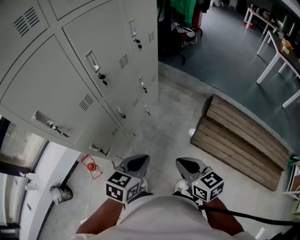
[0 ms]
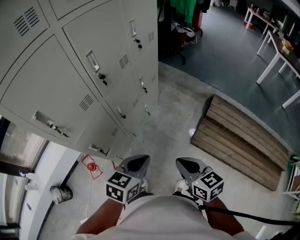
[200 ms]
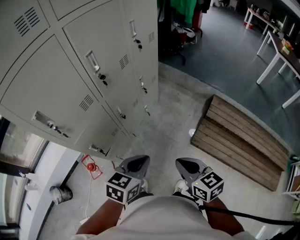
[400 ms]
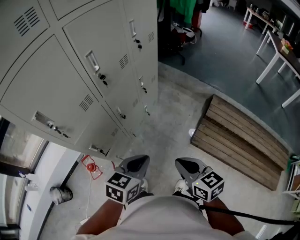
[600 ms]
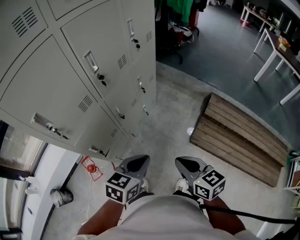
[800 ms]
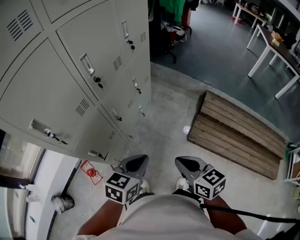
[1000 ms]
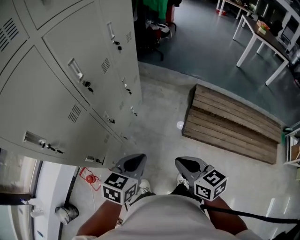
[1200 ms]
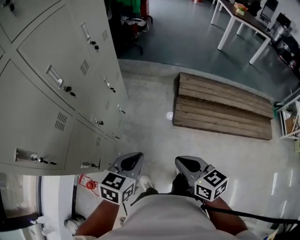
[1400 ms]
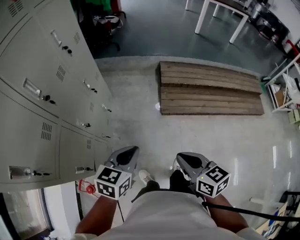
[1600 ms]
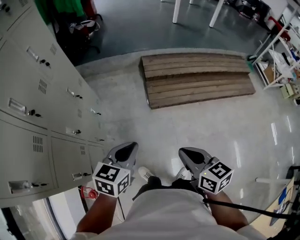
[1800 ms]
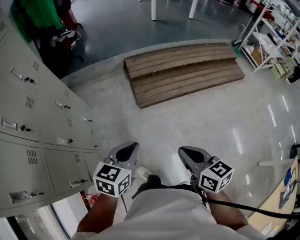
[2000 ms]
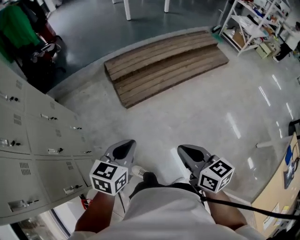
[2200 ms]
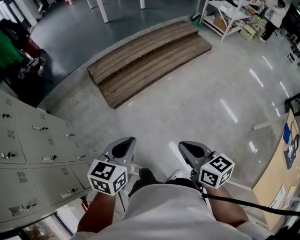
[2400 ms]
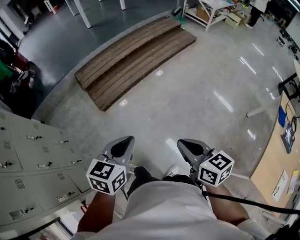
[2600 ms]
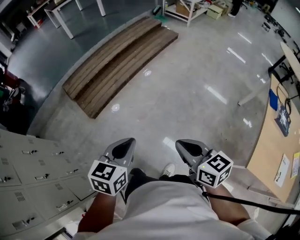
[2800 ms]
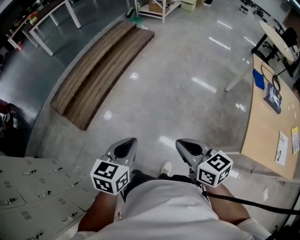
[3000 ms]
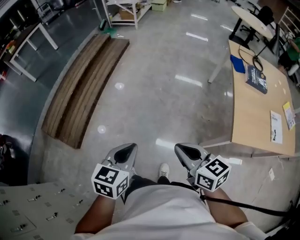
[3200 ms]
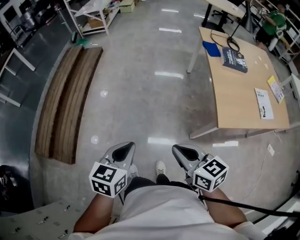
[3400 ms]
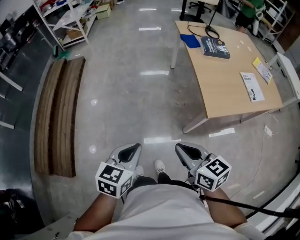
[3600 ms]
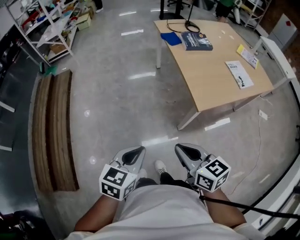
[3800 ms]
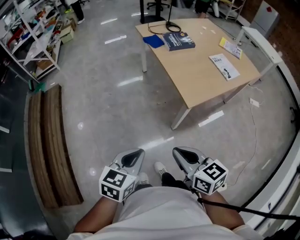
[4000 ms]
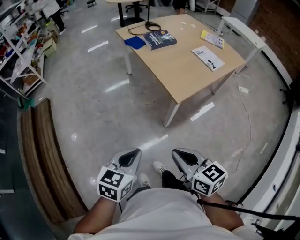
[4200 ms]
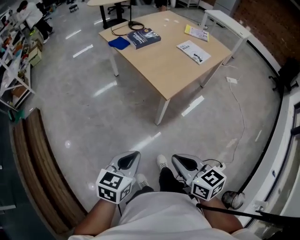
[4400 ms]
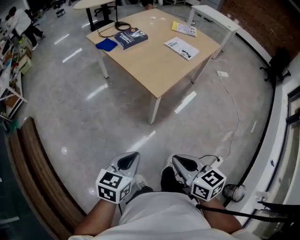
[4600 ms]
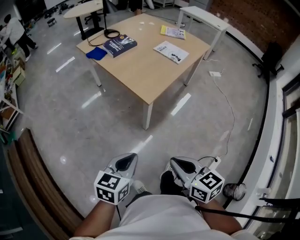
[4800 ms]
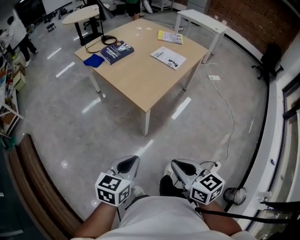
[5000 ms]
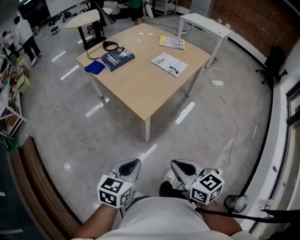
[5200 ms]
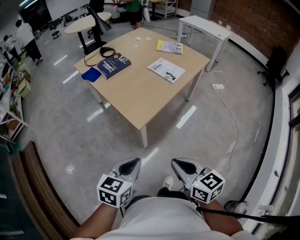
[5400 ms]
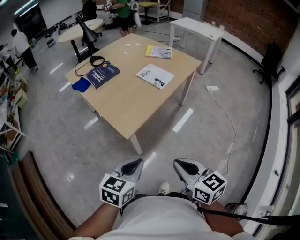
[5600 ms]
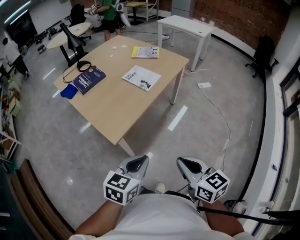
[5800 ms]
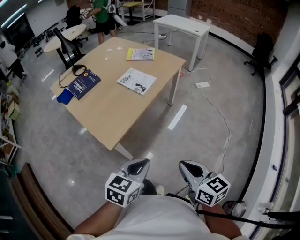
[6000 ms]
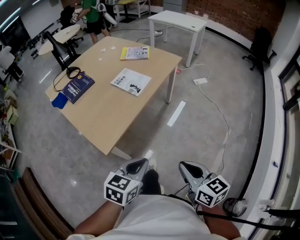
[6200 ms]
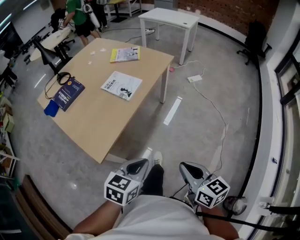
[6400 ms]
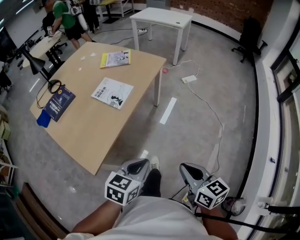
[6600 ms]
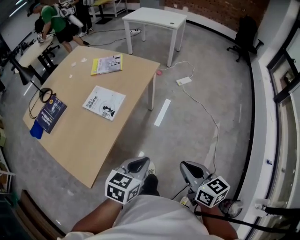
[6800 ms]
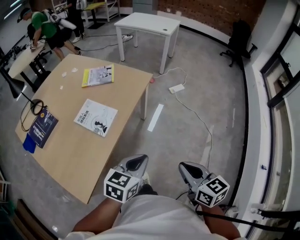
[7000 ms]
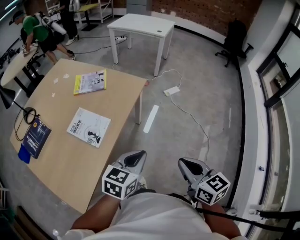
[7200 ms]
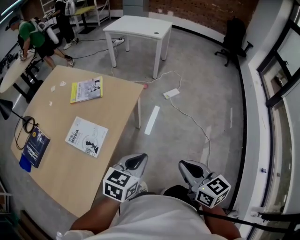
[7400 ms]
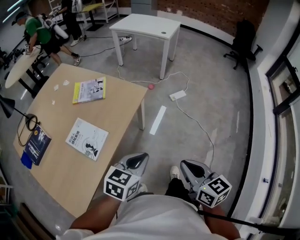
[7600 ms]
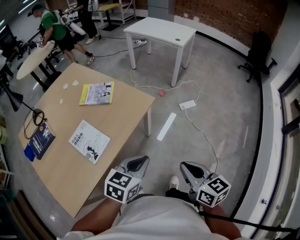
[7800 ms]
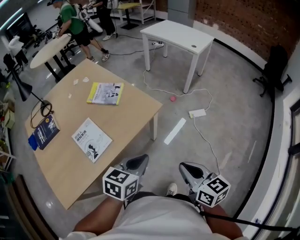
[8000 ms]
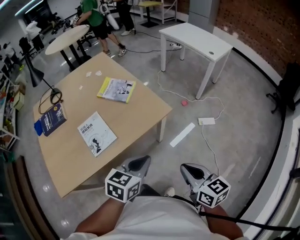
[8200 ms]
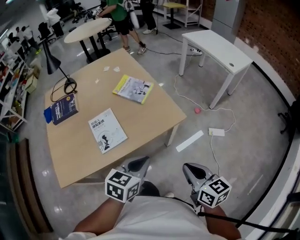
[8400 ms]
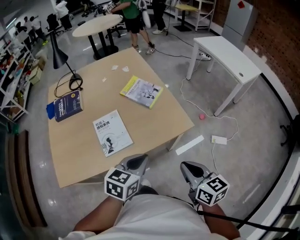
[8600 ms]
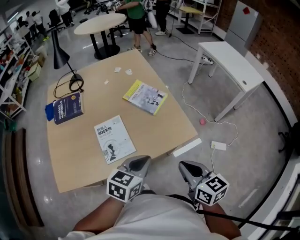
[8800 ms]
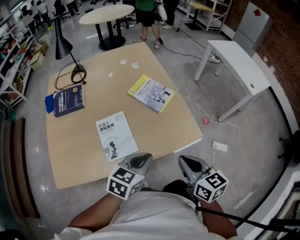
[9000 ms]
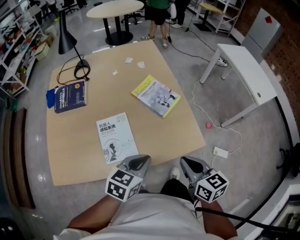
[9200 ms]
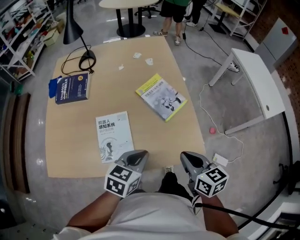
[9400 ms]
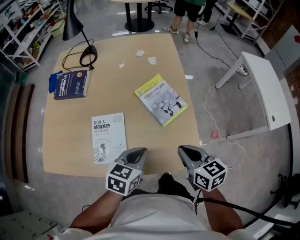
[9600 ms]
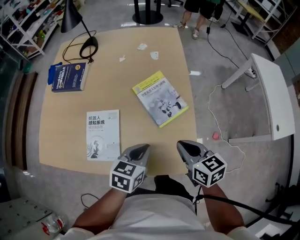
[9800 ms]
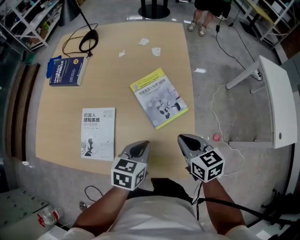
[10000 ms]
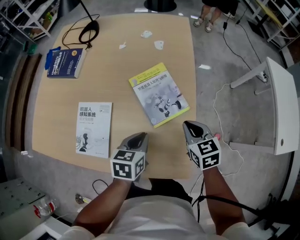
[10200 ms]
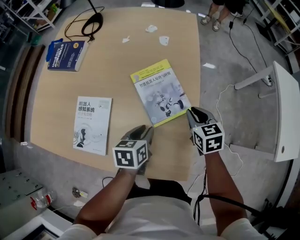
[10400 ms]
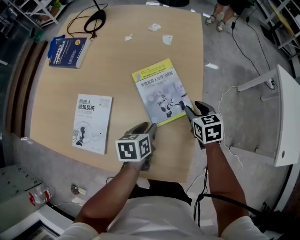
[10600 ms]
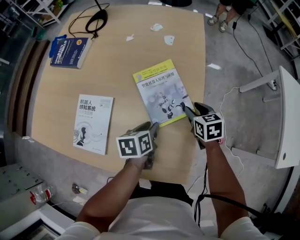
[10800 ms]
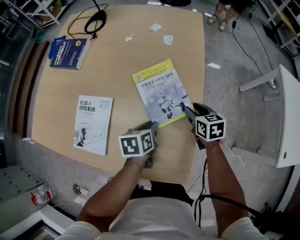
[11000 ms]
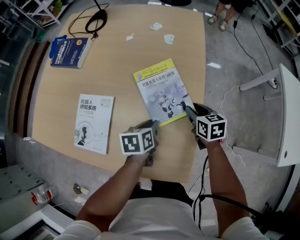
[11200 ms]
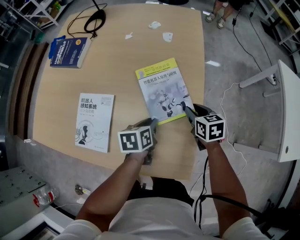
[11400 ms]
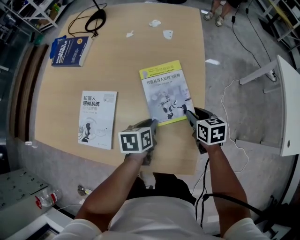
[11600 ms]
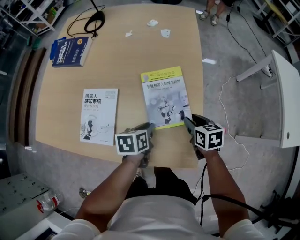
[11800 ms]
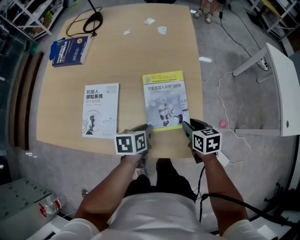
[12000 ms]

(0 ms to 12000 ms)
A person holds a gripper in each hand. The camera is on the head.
0 ms - 1600 ms: The right gripper moves some 10 cm, and swivels approximately 30 degrees; the left gripper swivels approximately 30 degrees.
1600 ms - 3000 ms: Both grippers are carried approximately 50 cm. The left gripper changes its angle by roughly 60 degrees. Meanwhile the right gripper rotates roughly 60 degrees.
3000 ms - 4400 ms: The right gripper moves approximately 20 cm, and rotates about 70 degrees. The left gripper ends up about 25 cm from where it was, and changes its angle by some 70 degrees.
4400 ms - 6000 ms: The grippers both shift to the right and forward by about 35 cm. The right gripper swivels approximately 20 degrees, while the left gripper changes its angle by approximately 20 degrees.
6000 ms - 7600 ms: The pair of grippers is taken forward, roughly 40 cm.
7600 ms - 9000 ms: The left gripper shifts by roughly 20 cm, and rotates roughly 40 degrees; the right gripper changes place by roughly 30 cm, and swivels some 40 degrees.
9000 ms - 10400 ms: The right gripper changes place by some 40 cm, and rotates roughly 40 degrees. The left gripper moves about 25 cm, changes its angle by approximately 60 degrees, and opens up.
10400 ms - 12000 ms: The right gripper shifts roughly 15 cm backward, while the left gripper heads backward, covering about 5 cm.

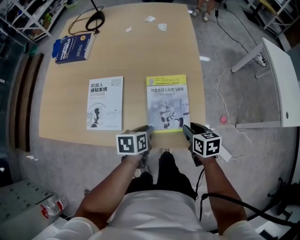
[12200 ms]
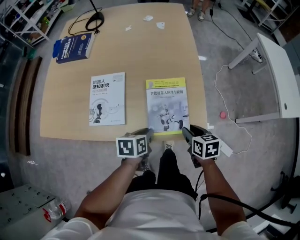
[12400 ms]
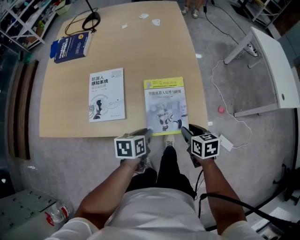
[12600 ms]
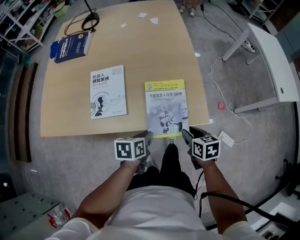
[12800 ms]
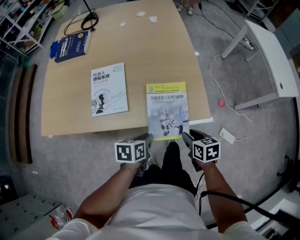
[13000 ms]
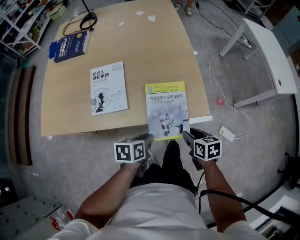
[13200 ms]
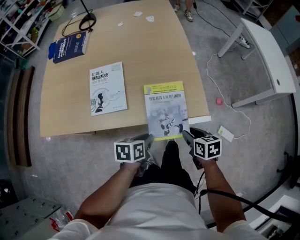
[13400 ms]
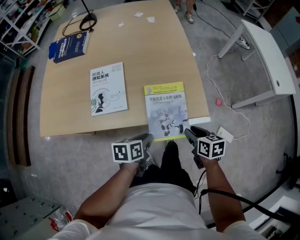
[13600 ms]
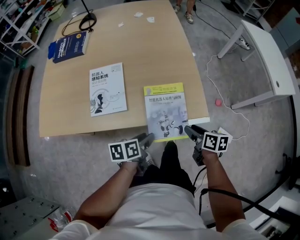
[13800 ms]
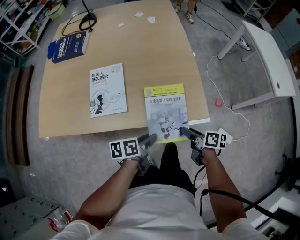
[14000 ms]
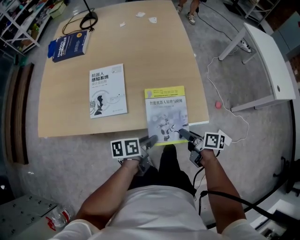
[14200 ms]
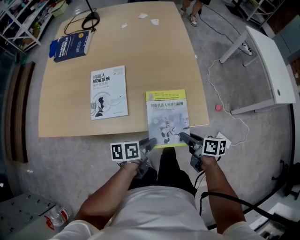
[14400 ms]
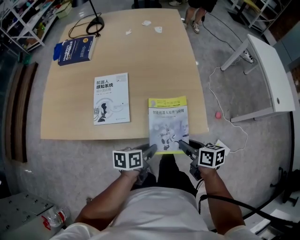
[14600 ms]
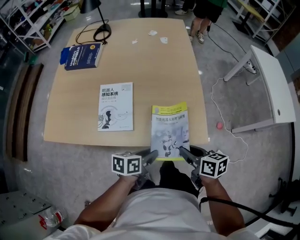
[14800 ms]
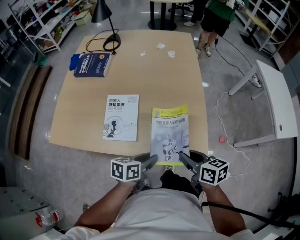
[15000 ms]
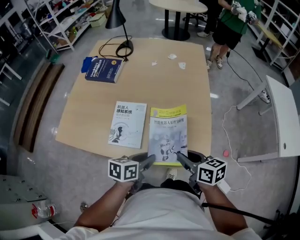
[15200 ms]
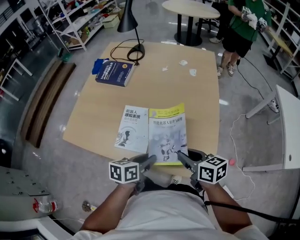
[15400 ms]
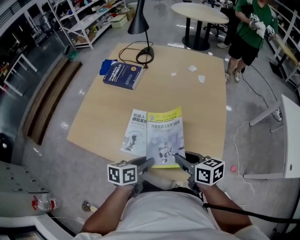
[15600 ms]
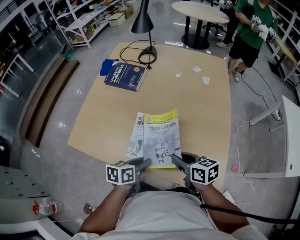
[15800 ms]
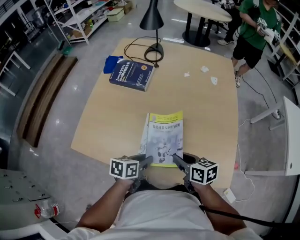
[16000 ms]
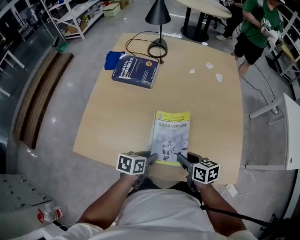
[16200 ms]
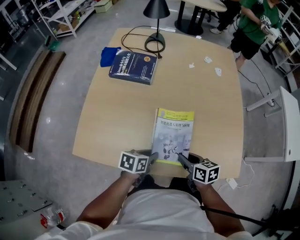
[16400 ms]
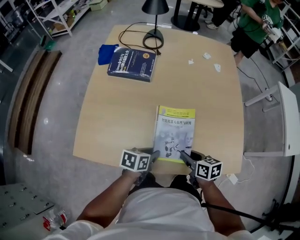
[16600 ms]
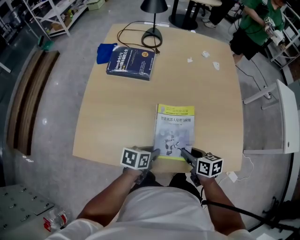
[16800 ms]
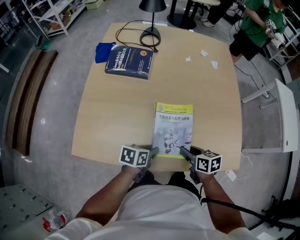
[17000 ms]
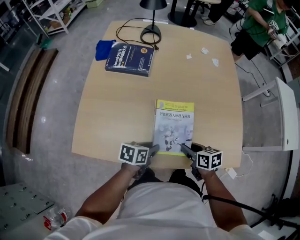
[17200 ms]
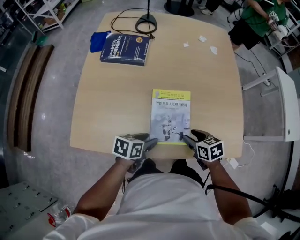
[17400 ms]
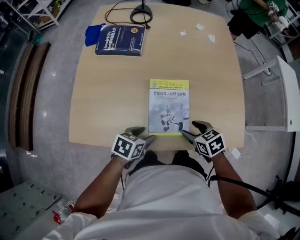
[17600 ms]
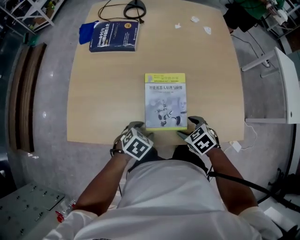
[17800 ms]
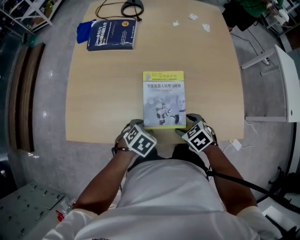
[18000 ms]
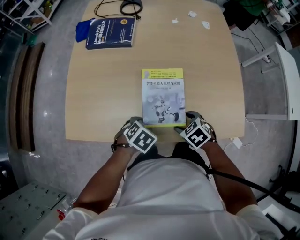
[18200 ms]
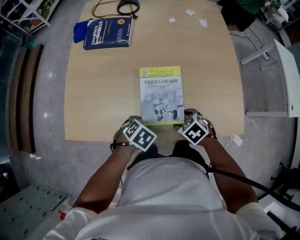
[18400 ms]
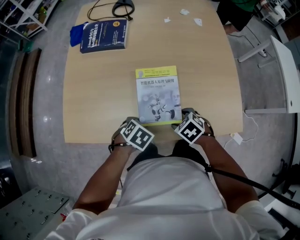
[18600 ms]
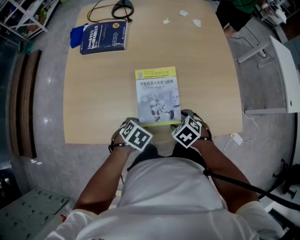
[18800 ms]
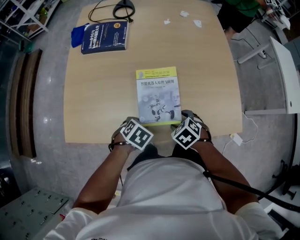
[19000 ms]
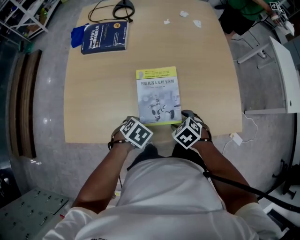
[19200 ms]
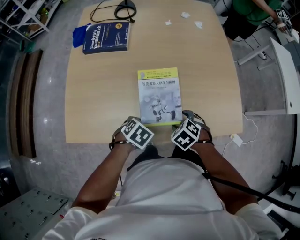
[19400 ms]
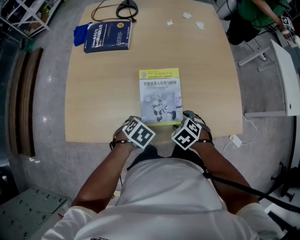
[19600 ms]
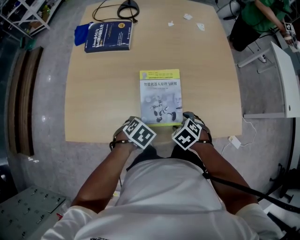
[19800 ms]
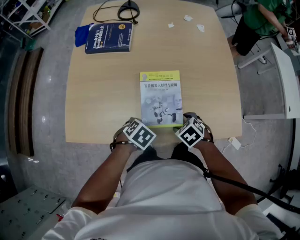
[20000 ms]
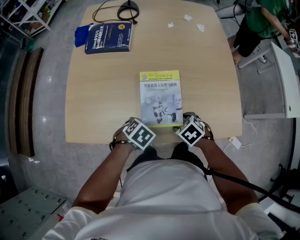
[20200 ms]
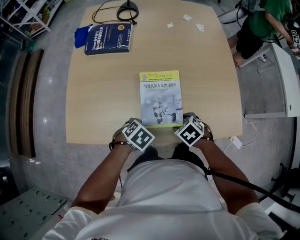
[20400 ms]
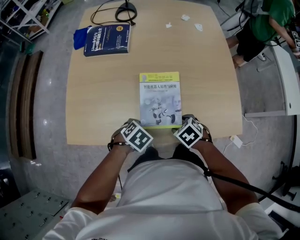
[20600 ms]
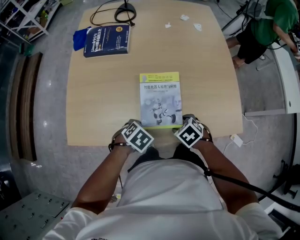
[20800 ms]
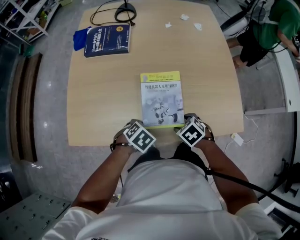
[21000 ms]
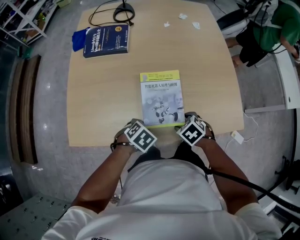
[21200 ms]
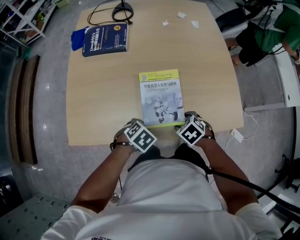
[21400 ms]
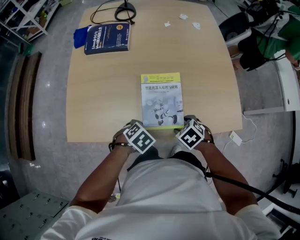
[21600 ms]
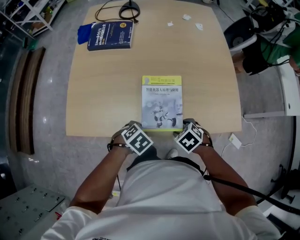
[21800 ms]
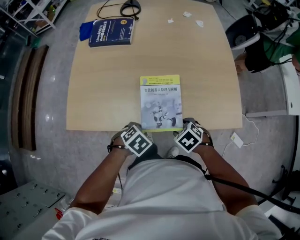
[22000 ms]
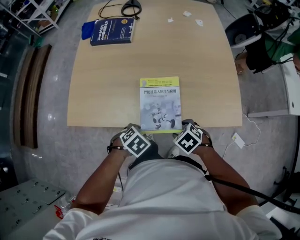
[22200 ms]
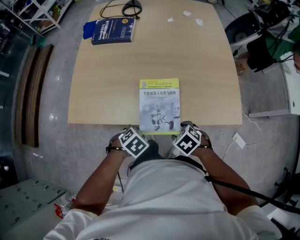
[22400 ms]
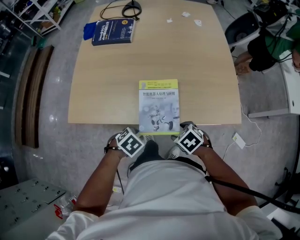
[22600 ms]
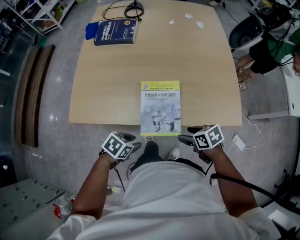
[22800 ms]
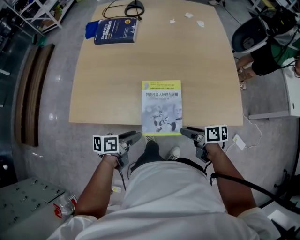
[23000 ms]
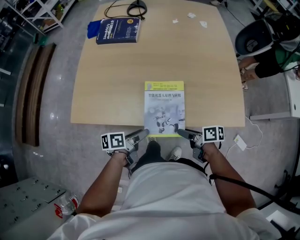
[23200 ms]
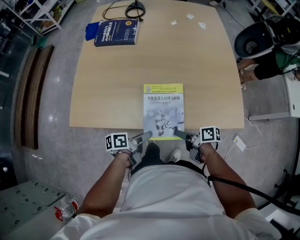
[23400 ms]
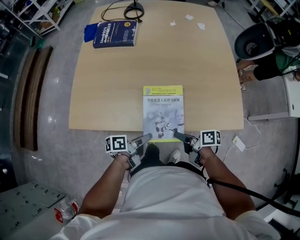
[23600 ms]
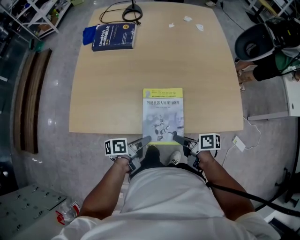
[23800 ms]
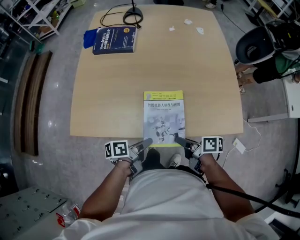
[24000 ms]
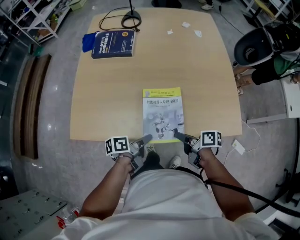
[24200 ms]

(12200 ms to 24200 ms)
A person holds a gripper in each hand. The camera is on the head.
12200 ms - 13800 ms: The grippers both shift backward by about 15 cm. The right gripper swivels roughly 30 degrees. Meanwhile the left gripper opens up.
13800 ms - 15200 ms: The right gripper travels upward, to the left and forward by roughly 20 cm, and turns by approximately 30 degrees; the left gripper is displaced upward and forward by some 15 cm.
15200 ms - 16600 ms: The grippers both shift to the left and downward by some 20 cm.
16600 ms - 18200 ms: The left gripper moves approximately 5 cm, rotates roughly 50 degrees, and opens. Meanwhile the right gripper rotates approximately 50 degrees, and opens its fingers.
18200 ms - 21200 ms: The grippers move only a little.
21200 ms - 22600 ms: The left gripper changes place by roughly 10 cm. Meanwhile the right gripper shifts by approximately 10 cm.
22600 ms - 24200 ms: The left gripper shifts by some 10 cm, tips its fingers upward by roughly 50 degrees, and opens and closes again. Meanwhile the right gripper moves about 5 cm, twists approximately 60 degrees clockwise, seen from behind, and closes.
